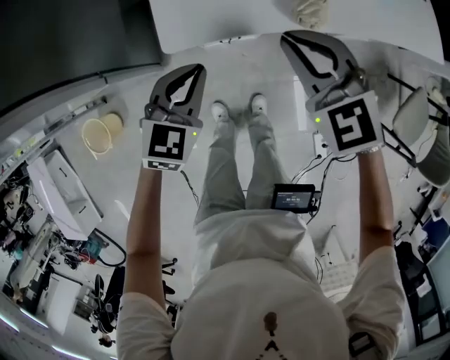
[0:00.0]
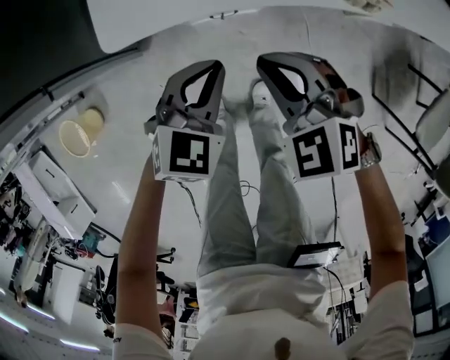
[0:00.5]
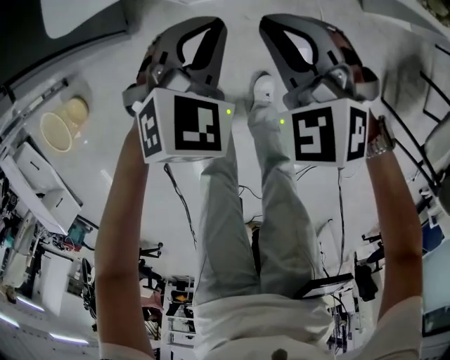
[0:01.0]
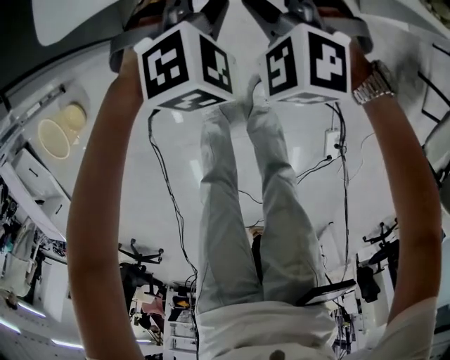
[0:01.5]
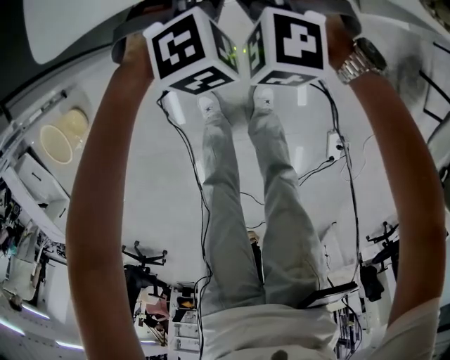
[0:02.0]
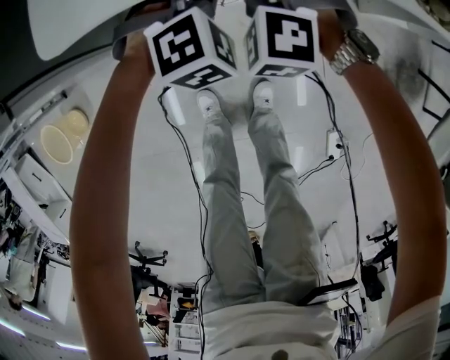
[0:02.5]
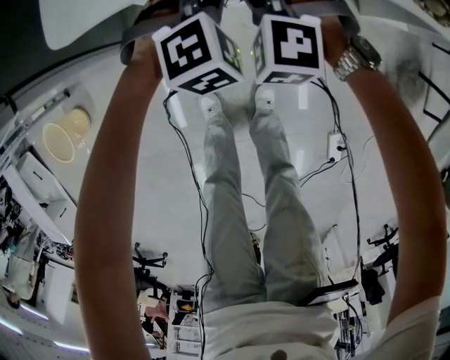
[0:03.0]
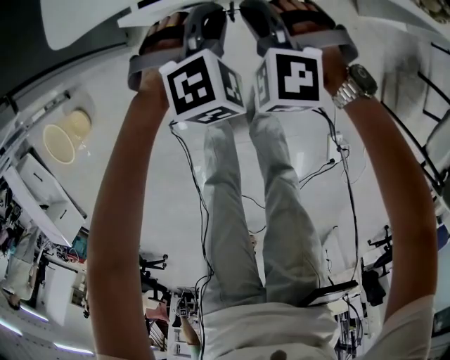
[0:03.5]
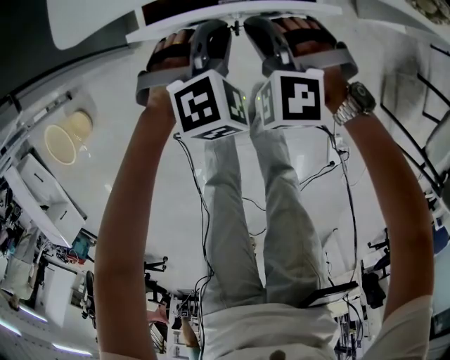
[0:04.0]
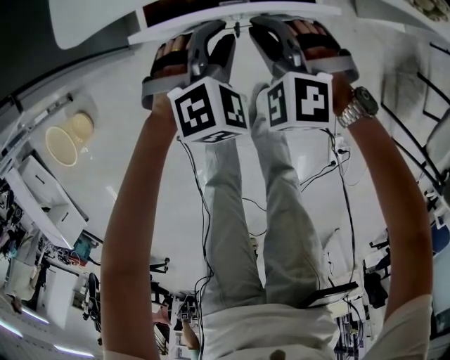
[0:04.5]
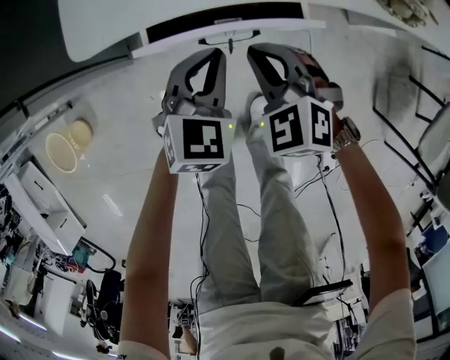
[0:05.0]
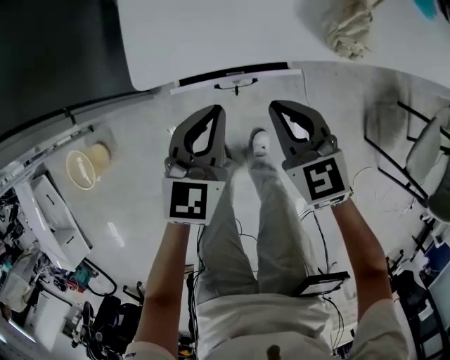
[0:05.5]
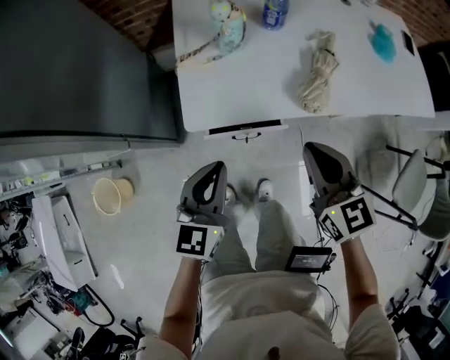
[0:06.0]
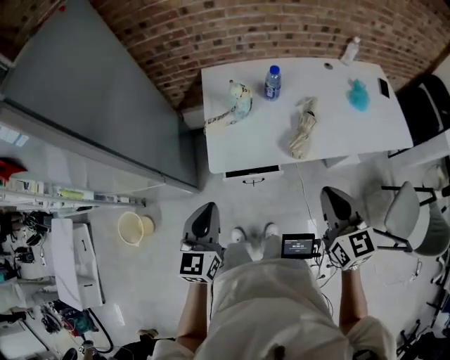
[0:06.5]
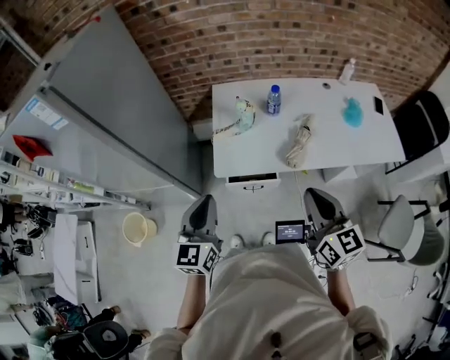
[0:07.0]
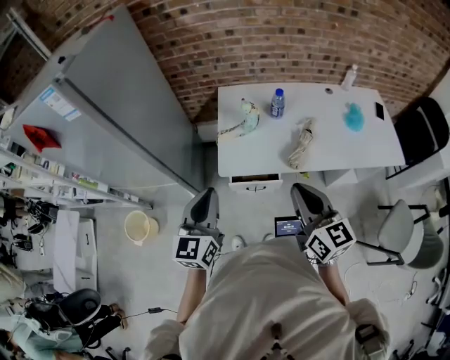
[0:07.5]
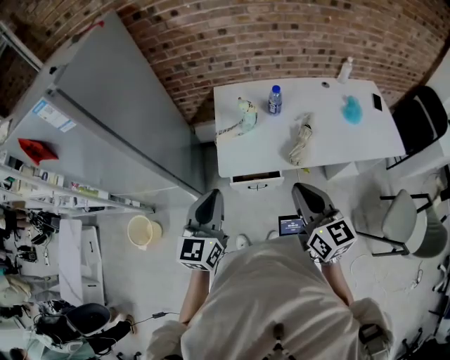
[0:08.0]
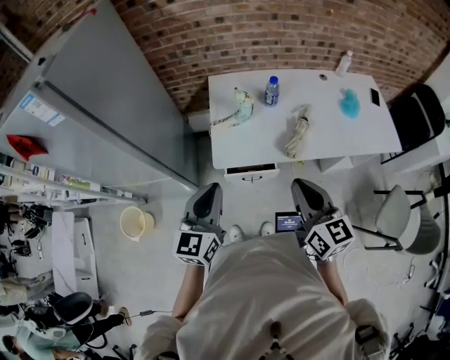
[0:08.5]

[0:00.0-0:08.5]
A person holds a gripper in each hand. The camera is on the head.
0:00.0 to 0:02.0: The two grippers go some 35 cm downward. The left gripper changes its angle by about 40 degrees, and opens. The right gripper turns by about 30 degrees, and opens its fingers.
0:02.0 to 0:04.0: Both grippers travel together backward, roughly 10 cm. The left gripper closes up, while the right gripper closes.
0:04.0 to 0:06.5: The grippers both shift upward by approximately 50 cm. The right gripper rotates around the line of its fingers by about 70 degrees, clockwise from behind. Meanwhile the left gripper rotates around the line of its fingers by some 60 degrees, counterclockwise from behind.
0:06.5 to 0:08.5: The left gripper shifts approximately 10 cm upward, while the right gripper is displaced upward and to the left by roughly 10 cm.

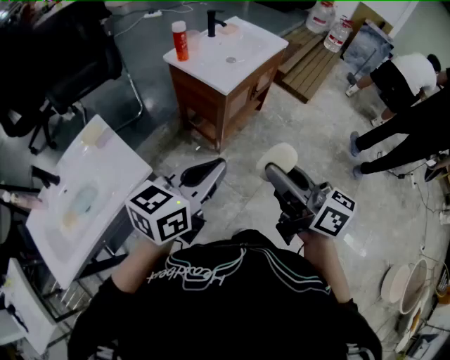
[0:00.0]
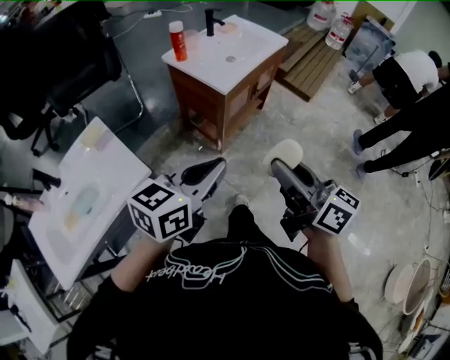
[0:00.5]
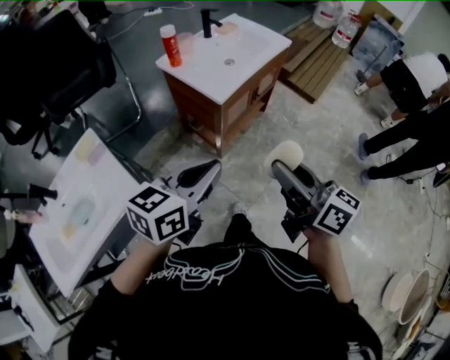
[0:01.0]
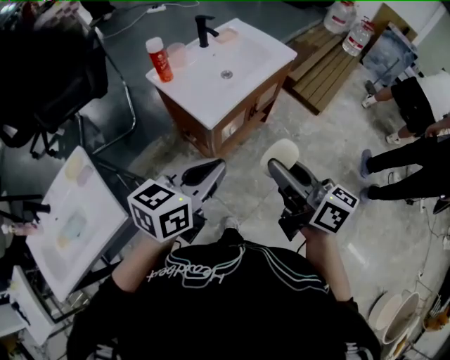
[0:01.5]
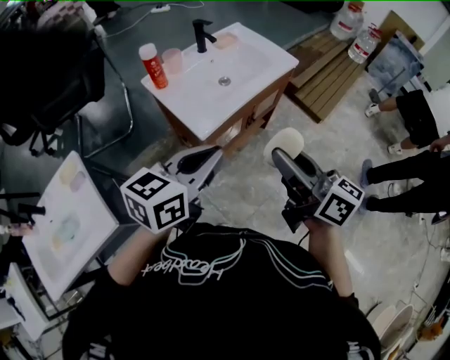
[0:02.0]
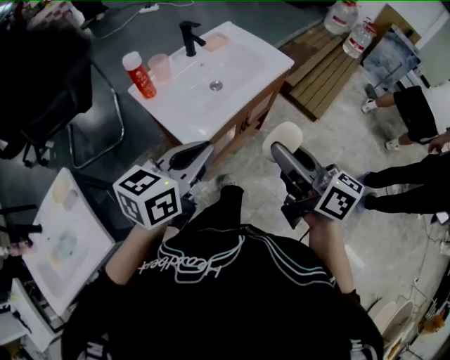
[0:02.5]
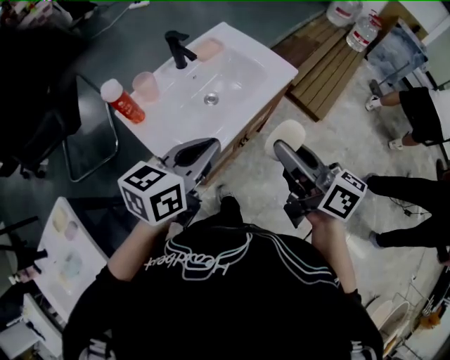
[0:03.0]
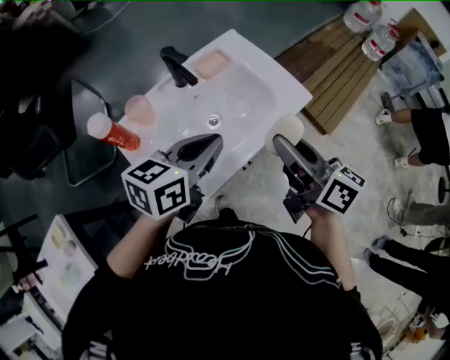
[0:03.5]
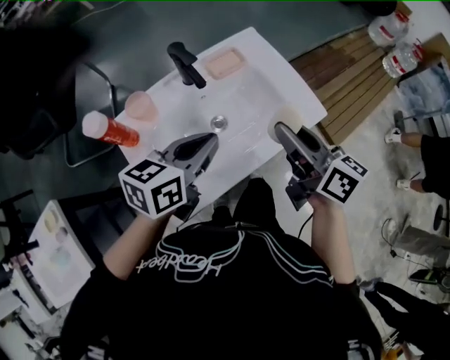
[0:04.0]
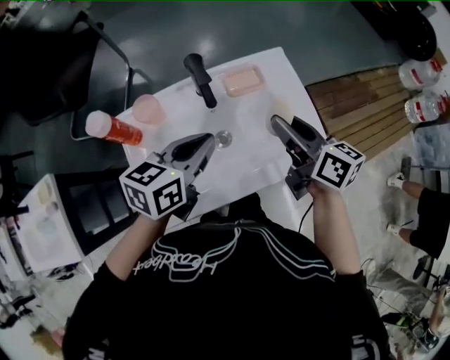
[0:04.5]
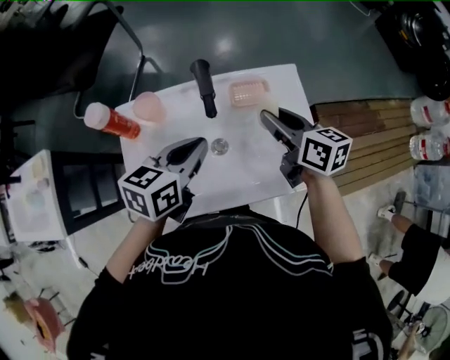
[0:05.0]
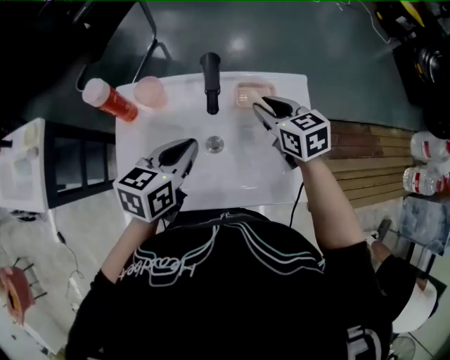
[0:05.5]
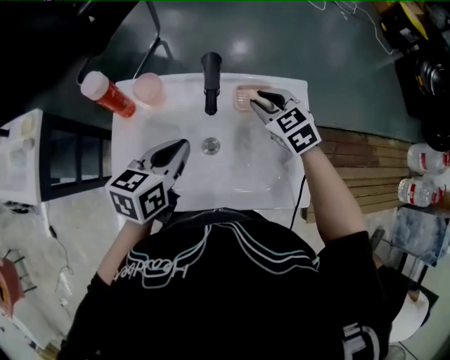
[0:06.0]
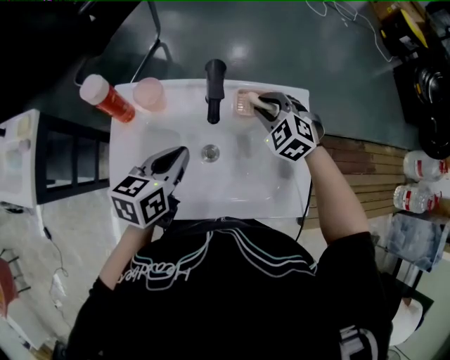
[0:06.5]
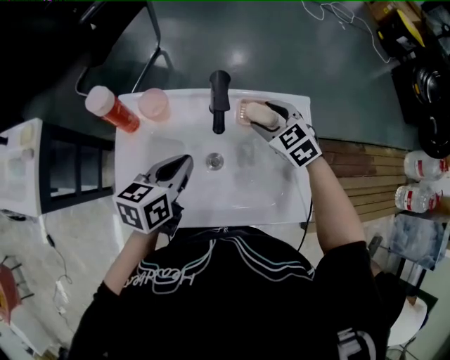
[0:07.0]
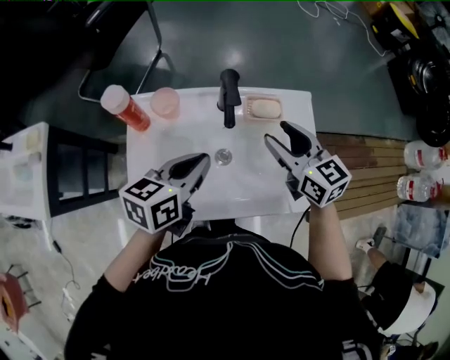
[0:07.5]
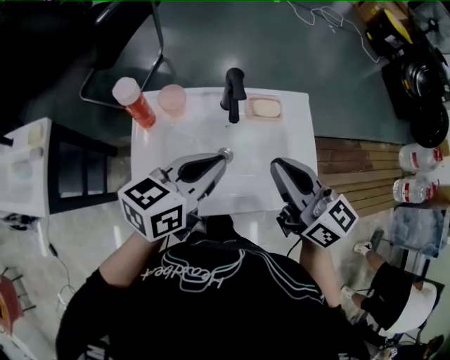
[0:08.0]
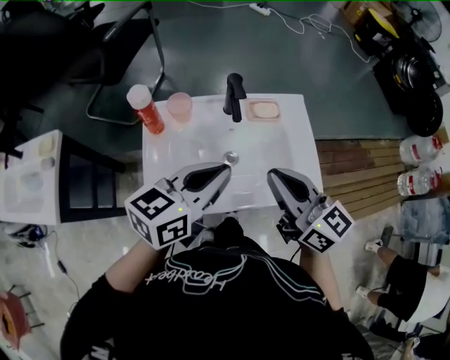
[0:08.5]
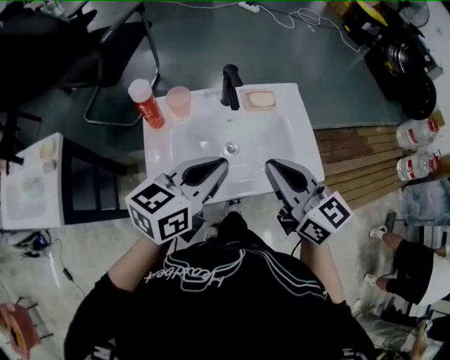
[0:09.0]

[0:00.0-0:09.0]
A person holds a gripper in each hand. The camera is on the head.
0:00.0 to 0:02.0: The two grippers go roughly 35 cm forward and to the right.
0:02.0 to 0:04.5: Both grippers are carried about 50 cm. The right gripper changes its angle by some 30 degrees. Meanwhile the left gripper turns by about 30 degrees.
0:04.5 to 0:07.0: The left gripper heads downward, covering roughly 5 cm, and turns by about 30 degrees; the right gripper travels forward and downward by about 20 cm, twists some 70 degrees counterclockwise, seen from behind, and opens its fingers.
0:07.0 to 0:09.0: The left gripper goes some 20 cm upward and backward, and swivels approximately 30 degrees; the right gripper goes some 35 cm backward and upward, tips its fingers upward by approximately 40 degrees, and closes up.

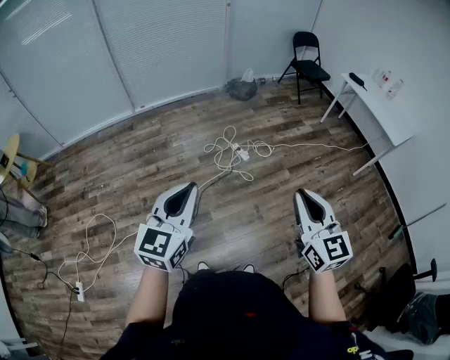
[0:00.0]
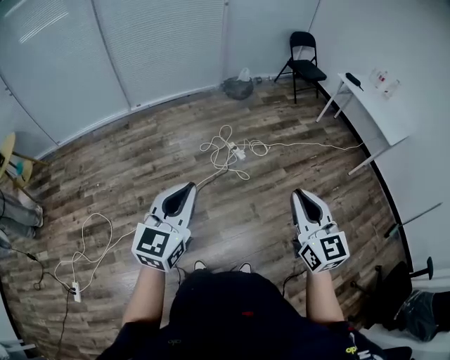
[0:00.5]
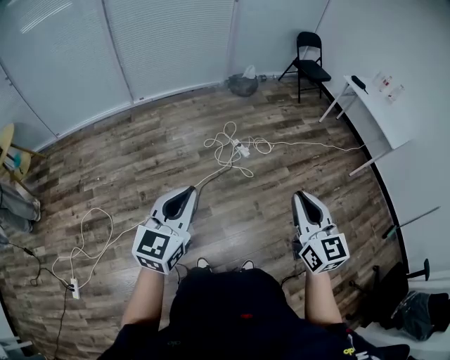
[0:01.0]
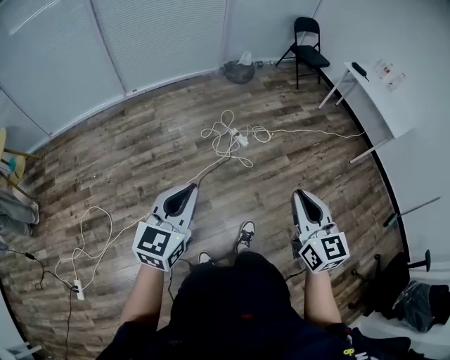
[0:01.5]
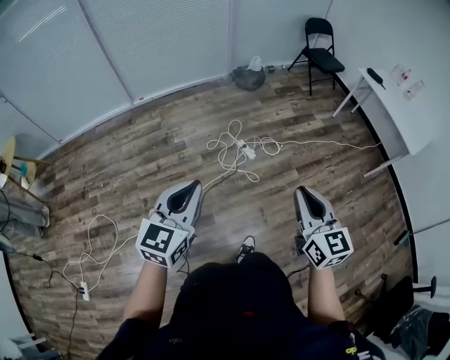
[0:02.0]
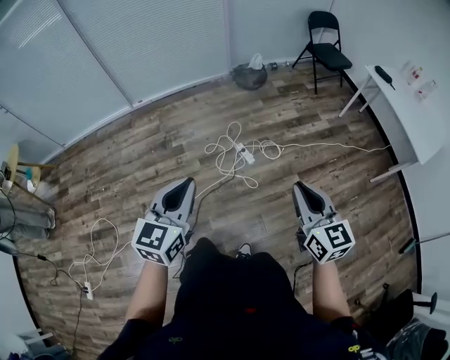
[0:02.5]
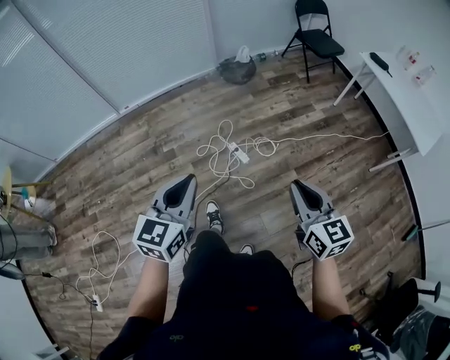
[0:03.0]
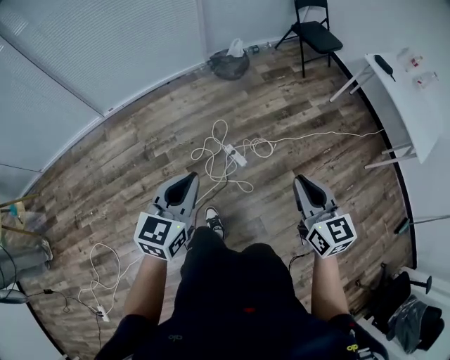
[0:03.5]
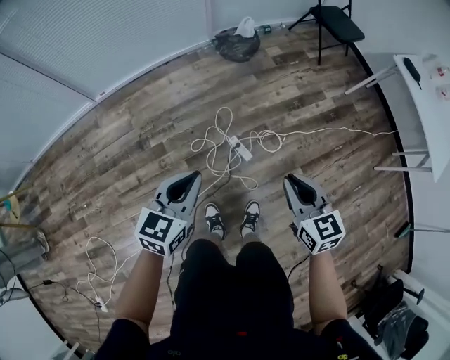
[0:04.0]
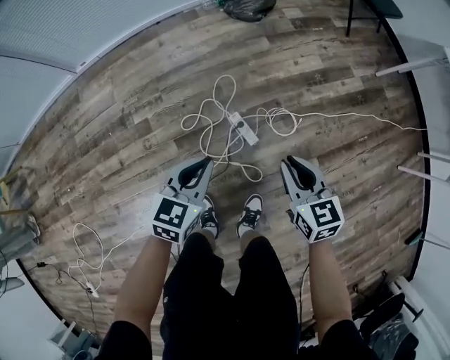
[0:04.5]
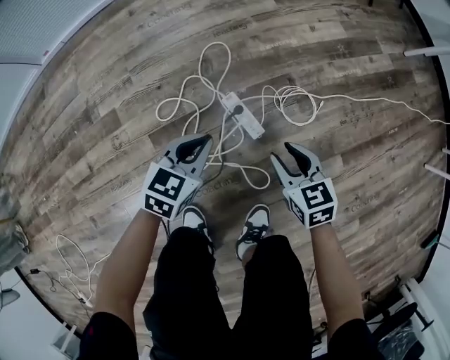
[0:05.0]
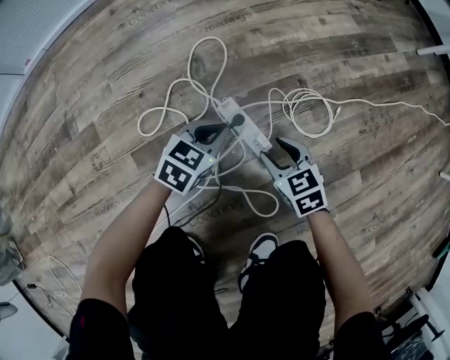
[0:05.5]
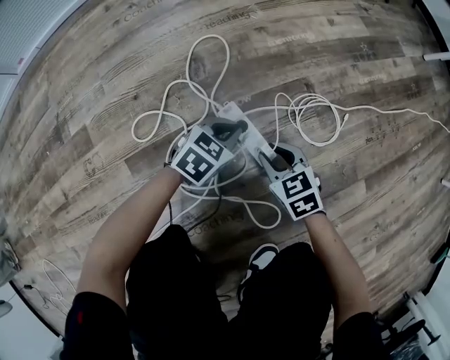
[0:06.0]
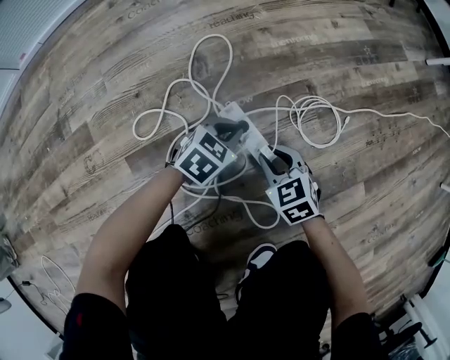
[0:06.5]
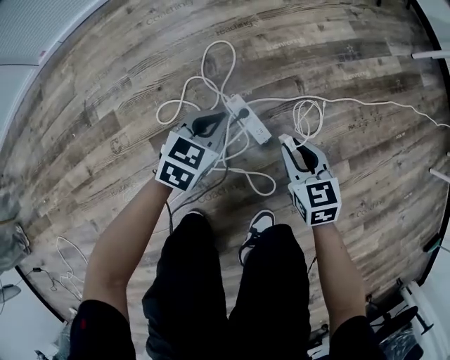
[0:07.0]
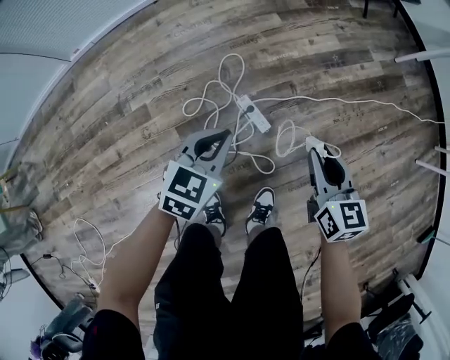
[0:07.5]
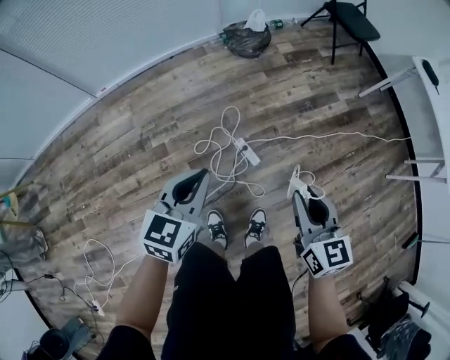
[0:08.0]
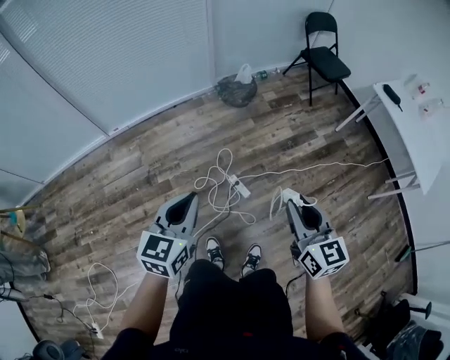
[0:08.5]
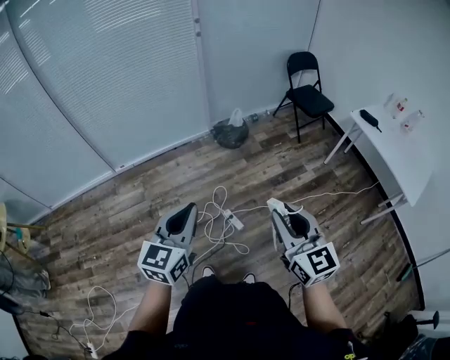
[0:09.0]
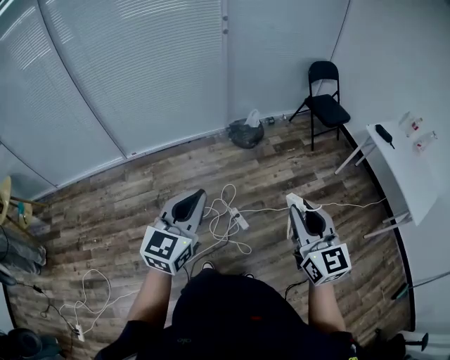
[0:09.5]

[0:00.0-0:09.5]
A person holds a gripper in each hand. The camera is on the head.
0:00.0 to 0:02.0: Both grippers move forward, about 20 cm.
0:02.0 to 0:04.0: The two grippers travel together, forward, approximately 50 cm. Both grippers move downward, some 20 cm.
0:04.0 to 0:05.5: The grippers both shift downward by roughly 80 cm. The left gripper swivels about 20 degrees, while the right gripper turns by some 20 degrees, and opens.
0:05.5 to 0:07.5: The two grippers go some 40 cm upward. The right gripper changes its angle by roughly 30 degrees.
0:07.5 to 0:09.5: The grippers both shift upward by roughly 70 cm. The right gripper rotates roughly 30 degrees. Meanwhile the left gripper points its fingers approximately 30 degrees further upward.
